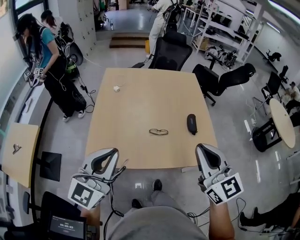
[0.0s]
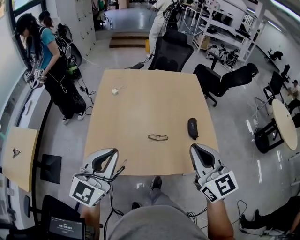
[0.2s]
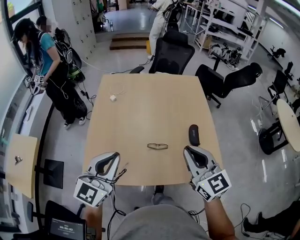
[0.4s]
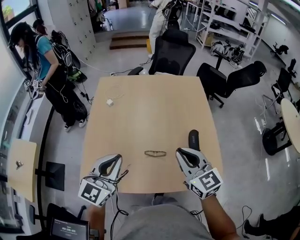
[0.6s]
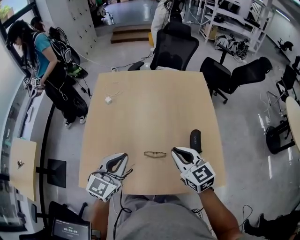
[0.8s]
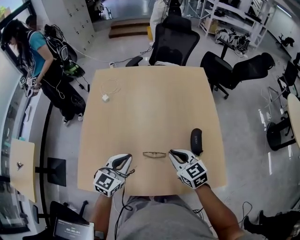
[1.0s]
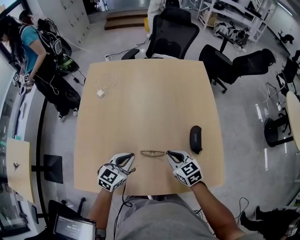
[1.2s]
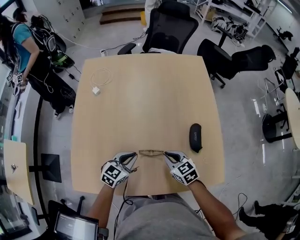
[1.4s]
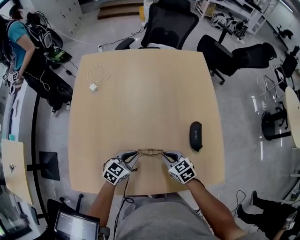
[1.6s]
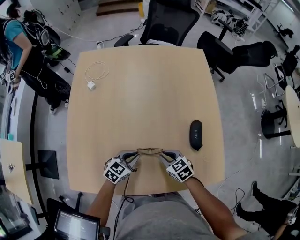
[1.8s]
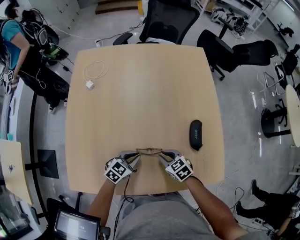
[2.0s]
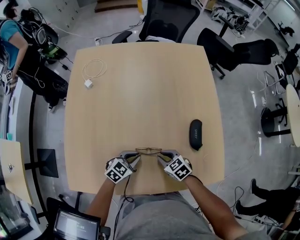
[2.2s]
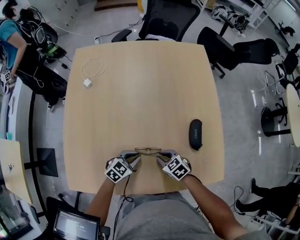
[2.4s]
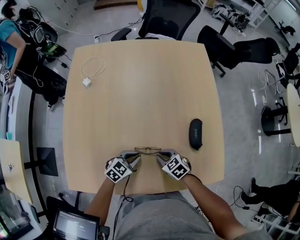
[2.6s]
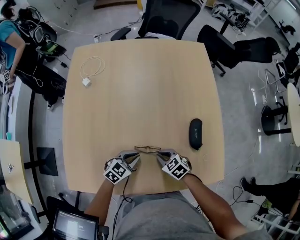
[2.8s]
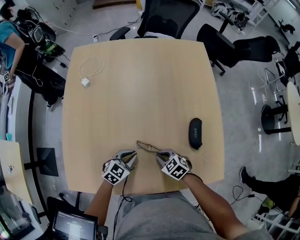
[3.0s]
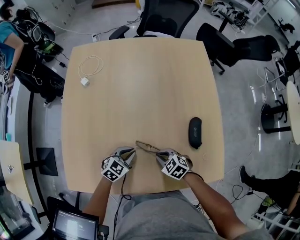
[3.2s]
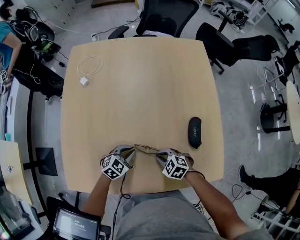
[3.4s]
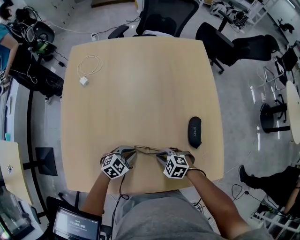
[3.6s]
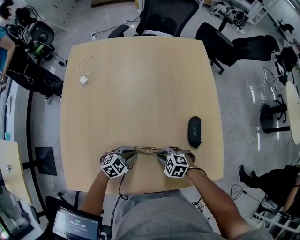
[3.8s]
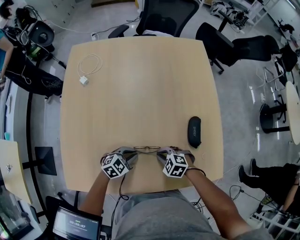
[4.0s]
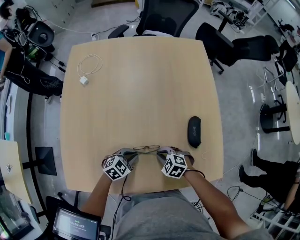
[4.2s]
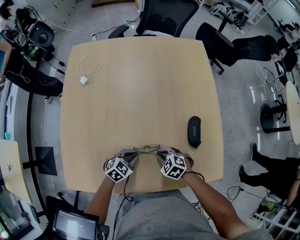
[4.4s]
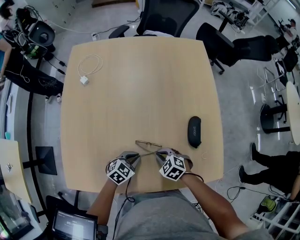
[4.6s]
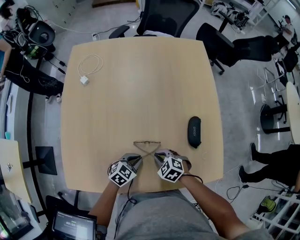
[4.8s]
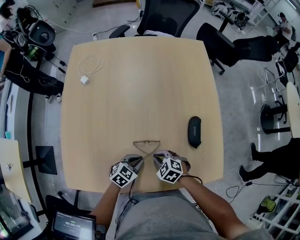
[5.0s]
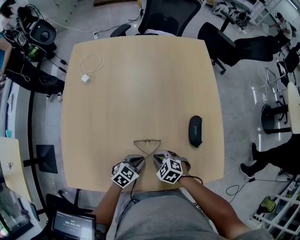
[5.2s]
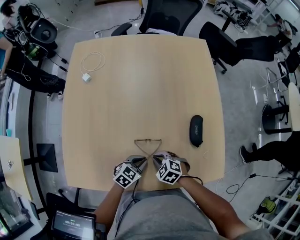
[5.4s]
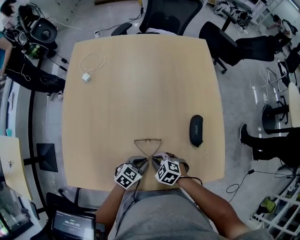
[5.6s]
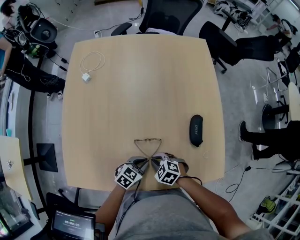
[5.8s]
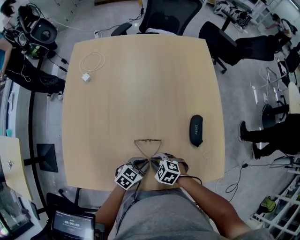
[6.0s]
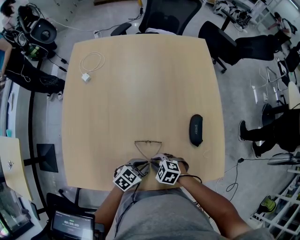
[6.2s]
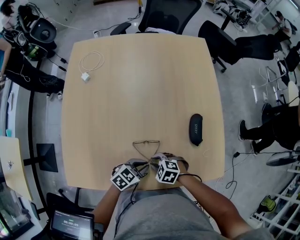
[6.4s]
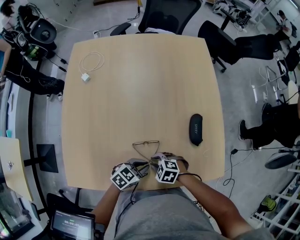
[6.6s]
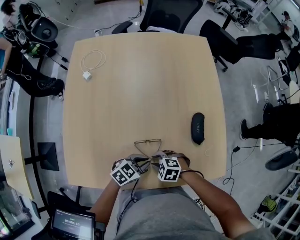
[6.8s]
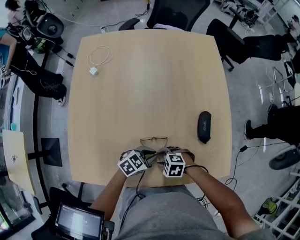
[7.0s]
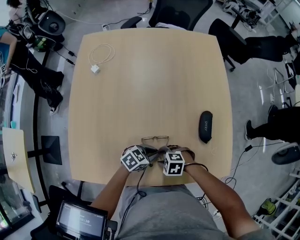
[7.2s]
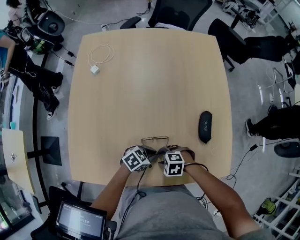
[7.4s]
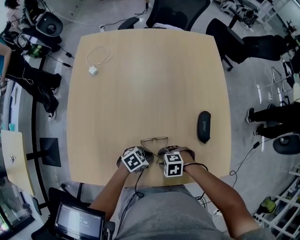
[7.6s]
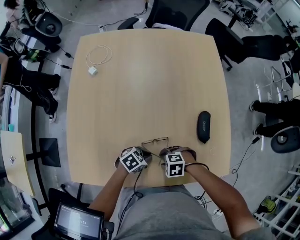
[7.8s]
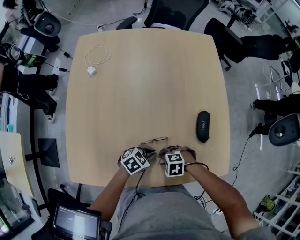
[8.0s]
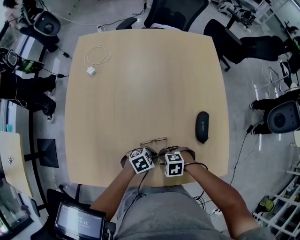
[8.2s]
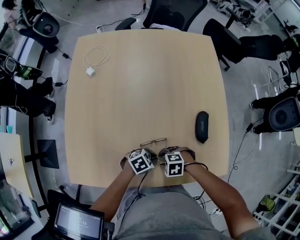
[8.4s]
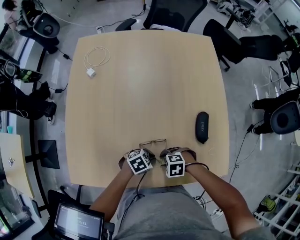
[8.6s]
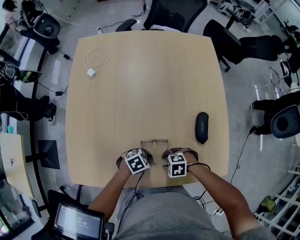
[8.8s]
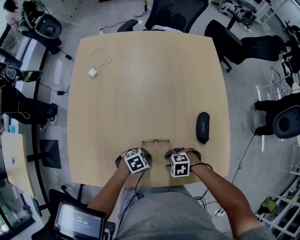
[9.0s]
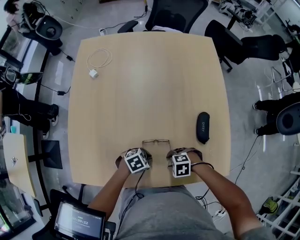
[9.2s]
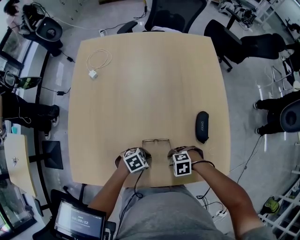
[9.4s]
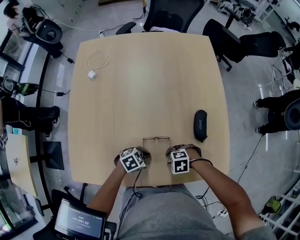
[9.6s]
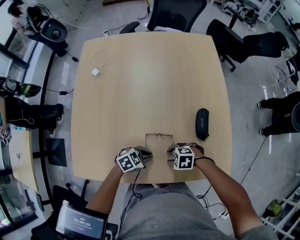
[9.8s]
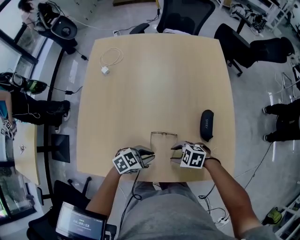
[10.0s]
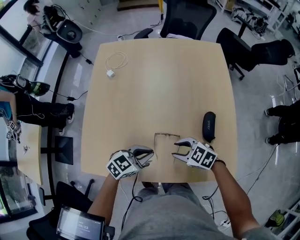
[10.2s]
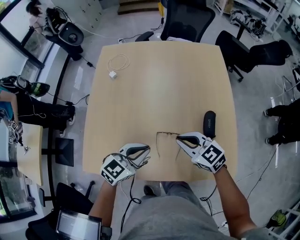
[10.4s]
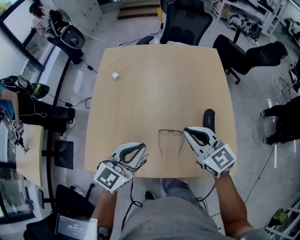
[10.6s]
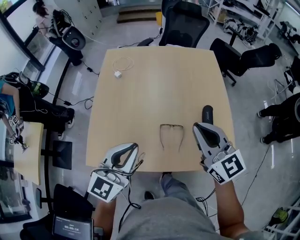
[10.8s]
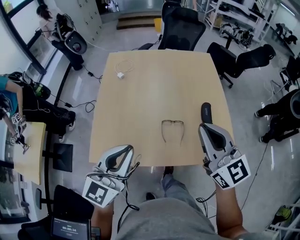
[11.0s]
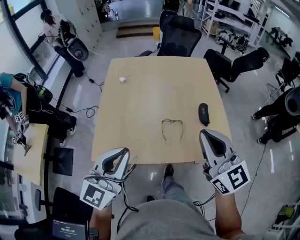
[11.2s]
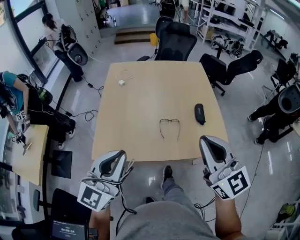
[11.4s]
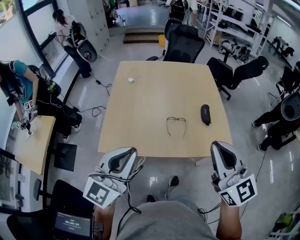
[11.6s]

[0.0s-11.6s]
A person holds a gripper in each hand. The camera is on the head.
0.0s to 1.4s: The left gripper moves downward, forward and to the right, approximately 50 cm, and tips its fingers downward by some 30 degrees, while the right gripper goes roughly 50 cm downward and forward, and tilts its fingers about 40 degrees downward.
1.4s to 2.8s: The two grippers go approximately 10 cm downward.
4.4s to 5.8s: The left gripper moves about 5 cm, while the right gripper ends up some 5 cm from where it was.
5.8s to 7.2s: The right gripper swivels roughly 20 degrees, and opens its fingers.
7.2s to 8.8s: The left gripper changes its angle by about 20 degrees.
8.8s to 10.2s: Both grippers move upward, about 15 cm. The left gripper turns by about 30 degrees, while the right gripper swivels approximately 40 degrees.
10.2s to 11.6s: Both grippers move upward, some 35 cm. The right gripper points its fingers approximately 50 degrees further upward, and closes up; the left gripper tips its fingers upward by approximately 40 degrees.

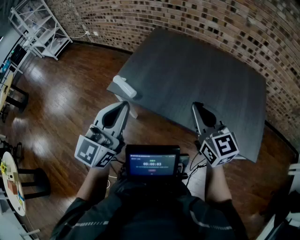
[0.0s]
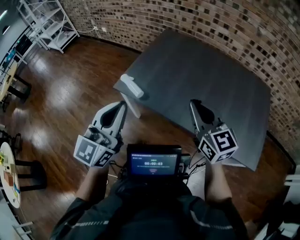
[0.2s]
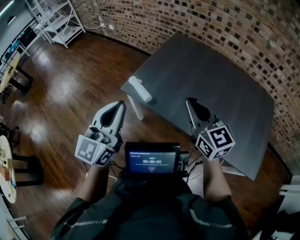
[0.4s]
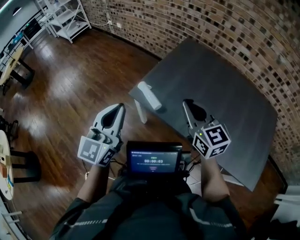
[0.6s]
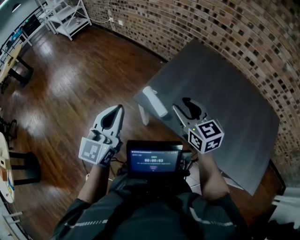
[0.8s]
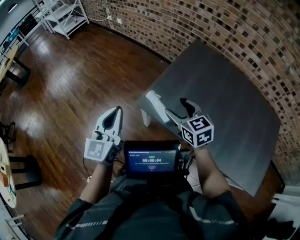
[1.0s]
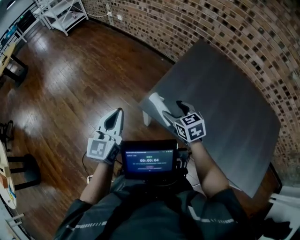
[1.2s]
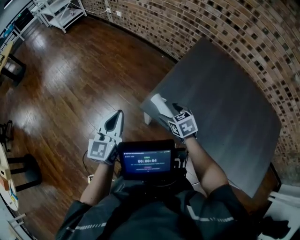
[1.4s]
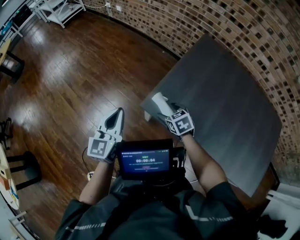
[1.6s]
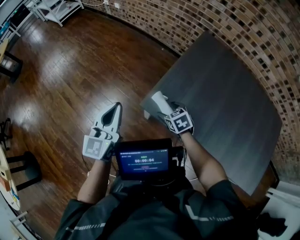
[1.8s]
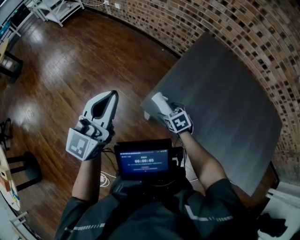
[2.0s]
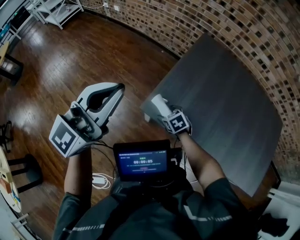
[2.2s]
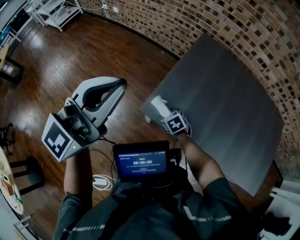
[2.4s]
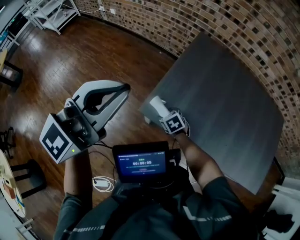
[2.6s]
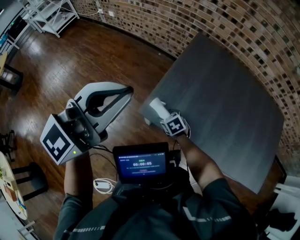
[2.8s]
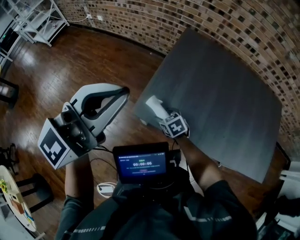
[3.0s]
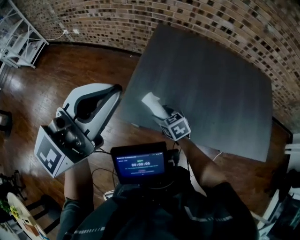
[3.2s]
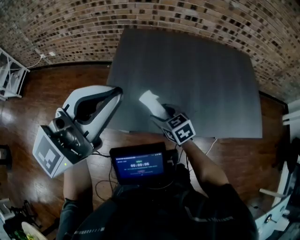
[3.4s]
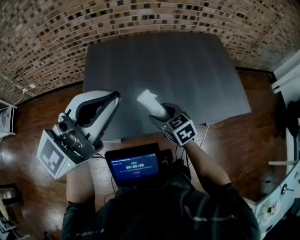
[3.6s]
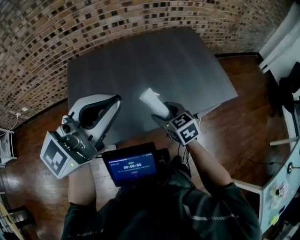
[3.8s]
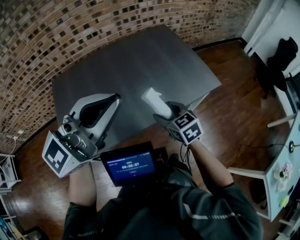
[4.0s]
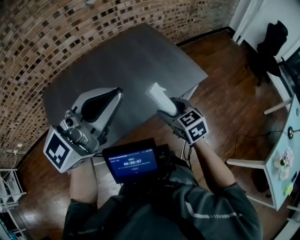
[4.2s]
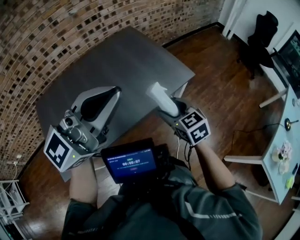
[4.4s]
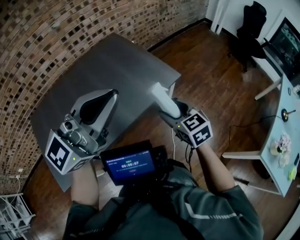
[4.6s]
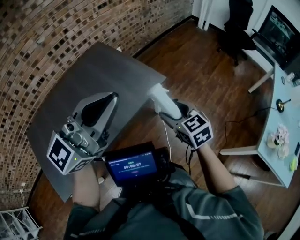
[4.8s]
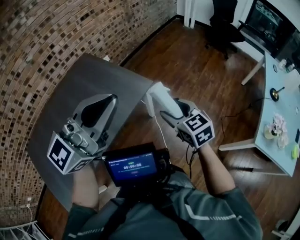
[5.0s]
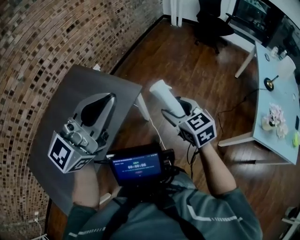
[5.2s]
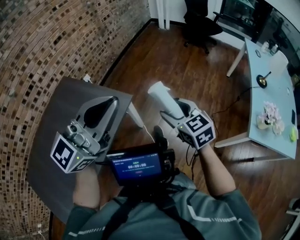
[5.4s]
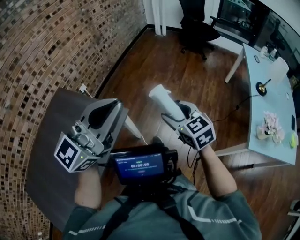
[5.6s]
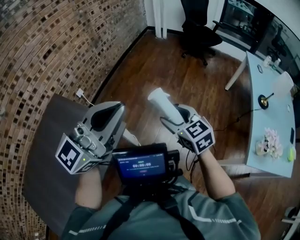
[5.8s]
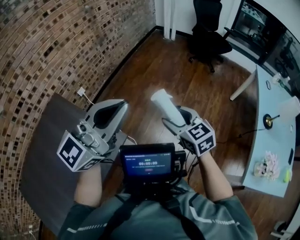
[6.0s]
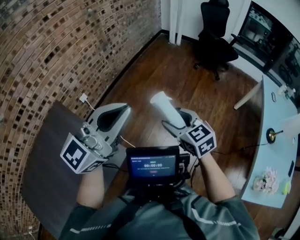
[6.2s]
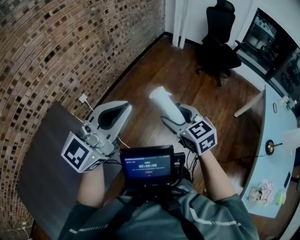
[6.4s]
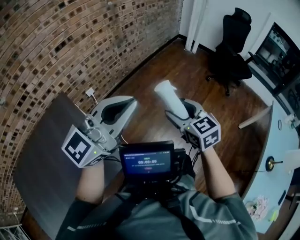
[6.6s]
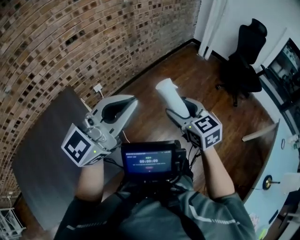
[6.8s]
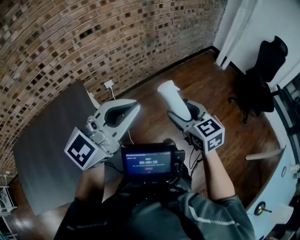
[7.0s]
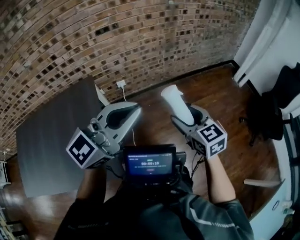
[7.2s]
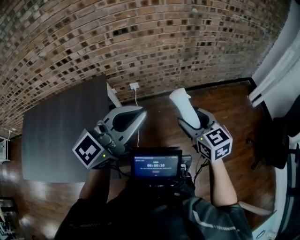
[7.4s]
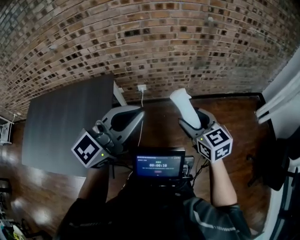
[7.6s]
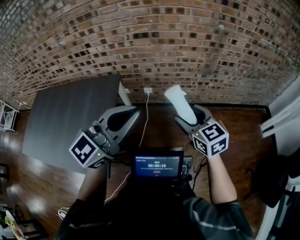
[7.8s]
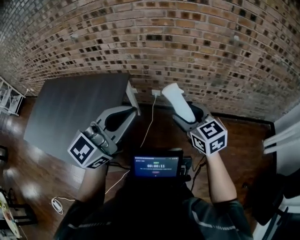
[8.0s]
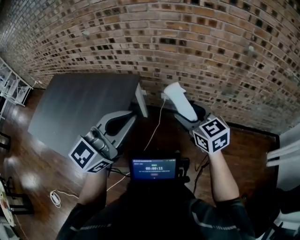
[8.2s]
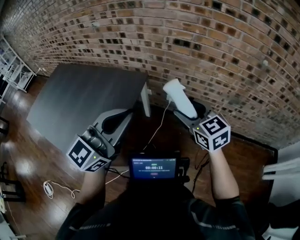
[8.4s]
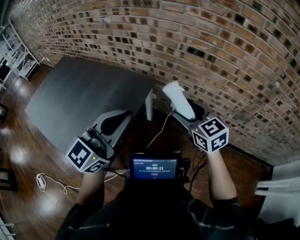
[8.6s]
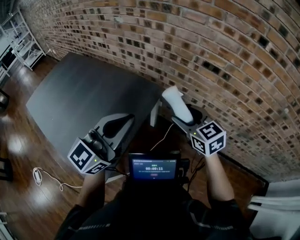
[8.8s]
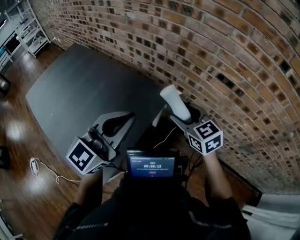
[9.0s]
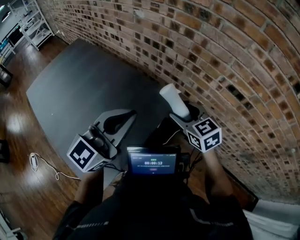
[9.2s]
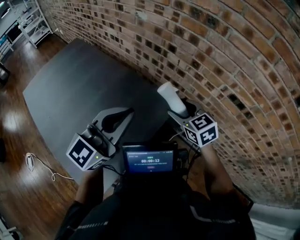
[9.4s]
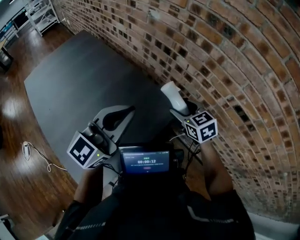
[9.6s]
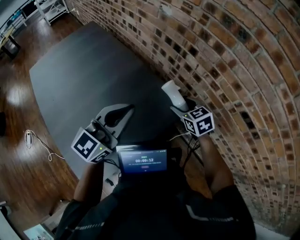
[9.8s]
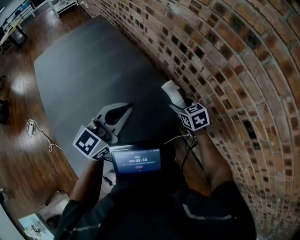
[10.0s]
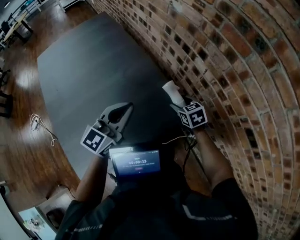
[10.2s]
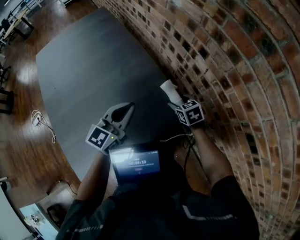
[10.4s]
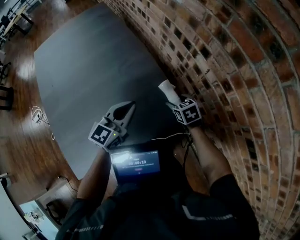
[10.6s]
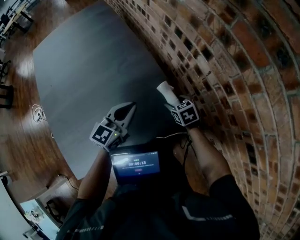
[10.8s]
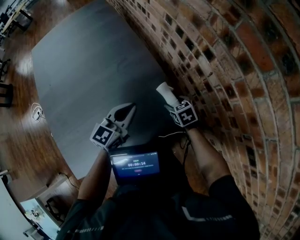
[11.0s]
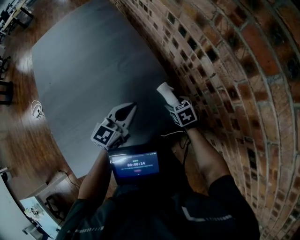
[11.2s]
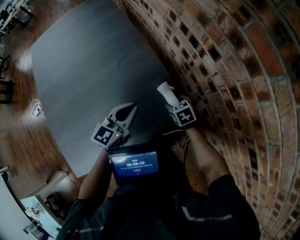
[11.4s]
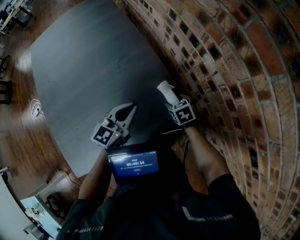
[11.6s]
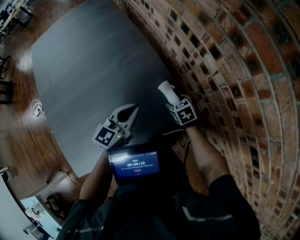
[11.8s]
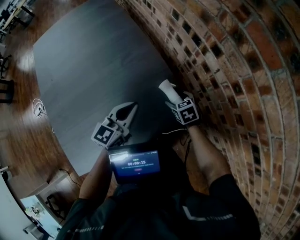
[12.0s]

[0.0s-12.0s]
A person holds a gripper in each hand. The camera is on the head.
0.0s to 1.6s: Both grippers are carried forward and to the left, about 40 cm. The right gripper travels downward by some 30 cm, tilts its fingers about 50 degrees downward, and opens up. Meanwhile the left gripper is displaced downward by about 20 cm, and turns by about 30 degrees.
1.6s to 3.0s: The left gripper is displaced upward by some 25 cm, and turns by about 60 degrees.
3.0s to 4.4s: The pair of grippers is taken about 60 cm. The left gripper rotates about 60 degrees, while the right gripper rotates approximately 70 degrees.
4.4s to 6.0s: The two grippers travel together, about 50 cm. The left gripper turns by approximately 20 degrees. The right gripper rotates approximately 30 degrees.
6.0s to 7.6s: The right gripper changes place by approximately 50 cm, and rotates approximately 50 degrees; the left gripper changes place by roughly 40 cm, and turns by some 50 degrees.
7.6s to 9.0s: The left gripper moves some 35 cm, and rotates approximately 40 degrees. The right gripper changes place by about 50 cm, and rotates about 40 degrees.
9.0s to 10.4s: The right gripper changes place by roughly 35 cm, and swivels some 30 degrees; the left gripper ends up about 30 cm from where it was, and turns by roughly 40 degrees.
10.4s to 12.0s: The grippers both shift downward by roughly 5 cm.
